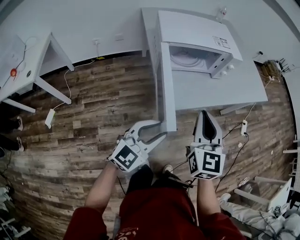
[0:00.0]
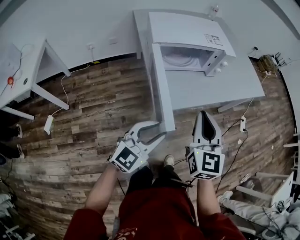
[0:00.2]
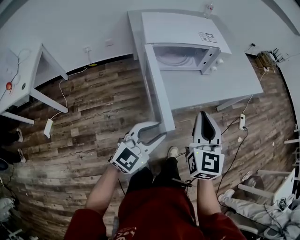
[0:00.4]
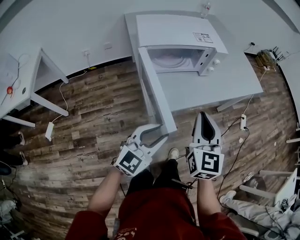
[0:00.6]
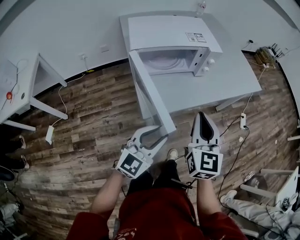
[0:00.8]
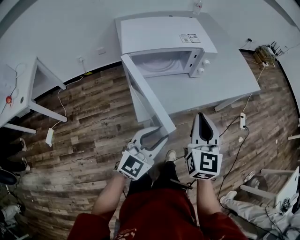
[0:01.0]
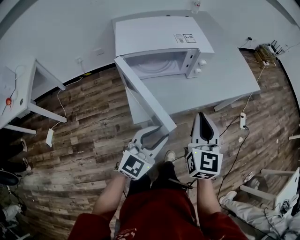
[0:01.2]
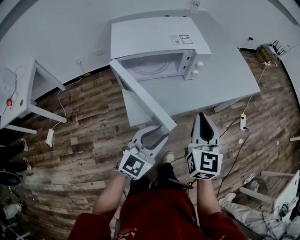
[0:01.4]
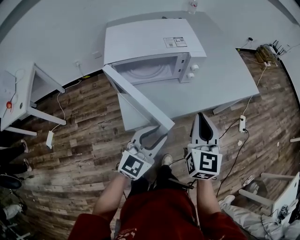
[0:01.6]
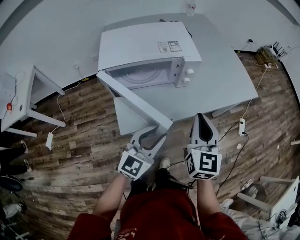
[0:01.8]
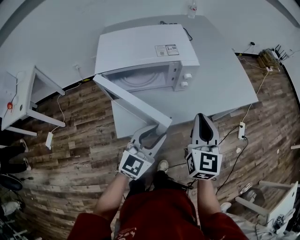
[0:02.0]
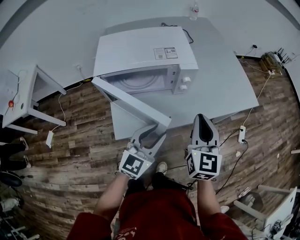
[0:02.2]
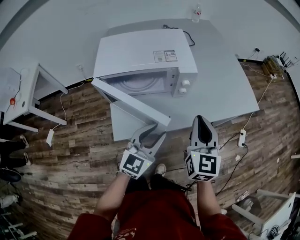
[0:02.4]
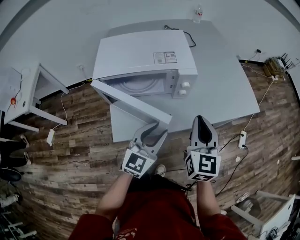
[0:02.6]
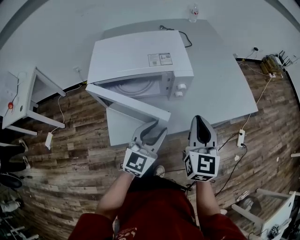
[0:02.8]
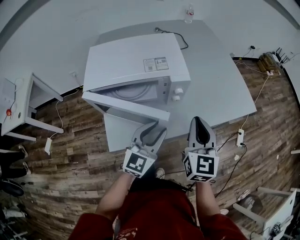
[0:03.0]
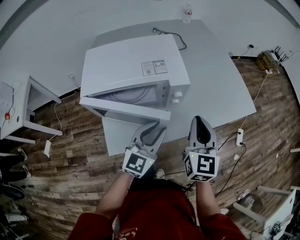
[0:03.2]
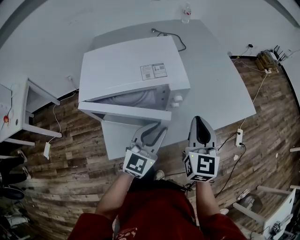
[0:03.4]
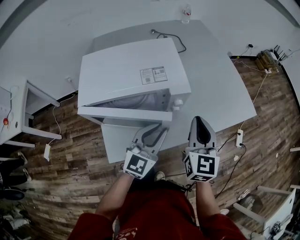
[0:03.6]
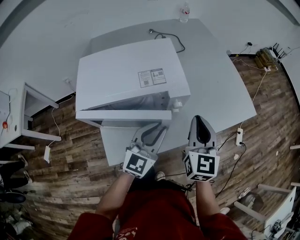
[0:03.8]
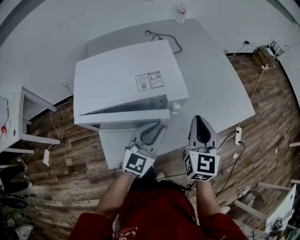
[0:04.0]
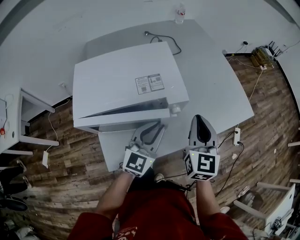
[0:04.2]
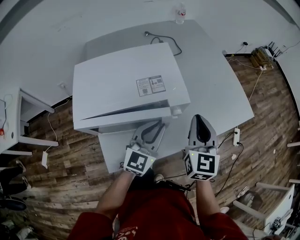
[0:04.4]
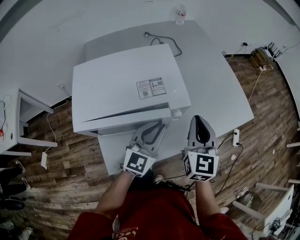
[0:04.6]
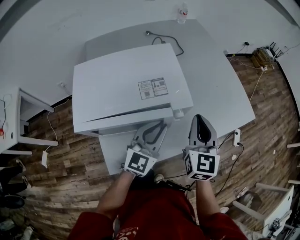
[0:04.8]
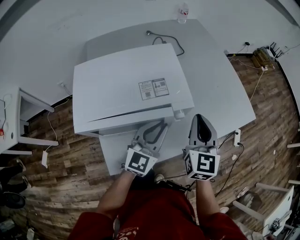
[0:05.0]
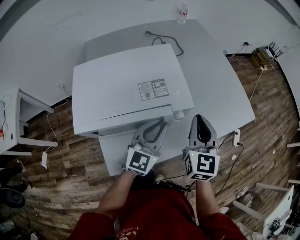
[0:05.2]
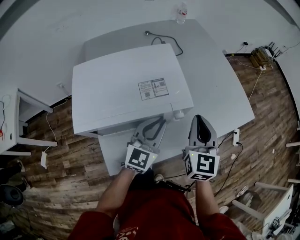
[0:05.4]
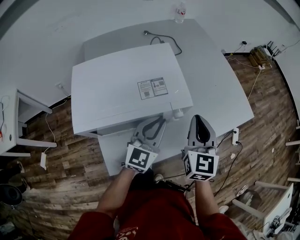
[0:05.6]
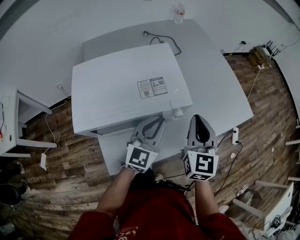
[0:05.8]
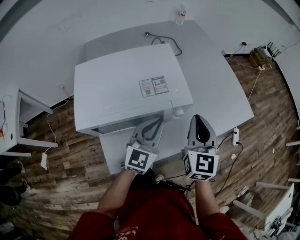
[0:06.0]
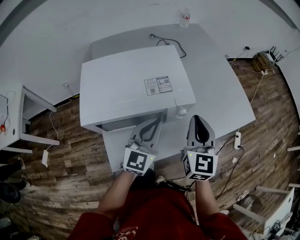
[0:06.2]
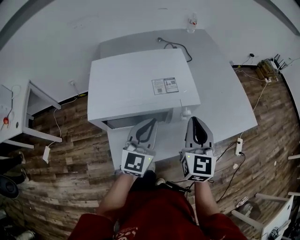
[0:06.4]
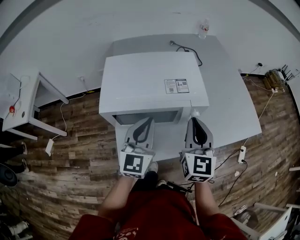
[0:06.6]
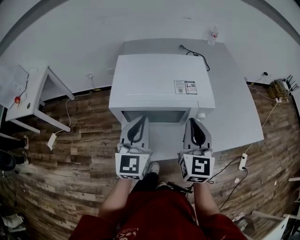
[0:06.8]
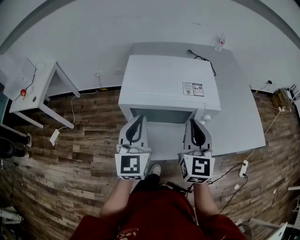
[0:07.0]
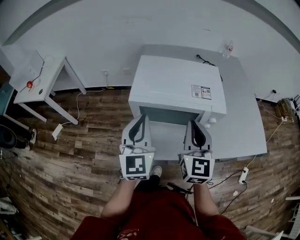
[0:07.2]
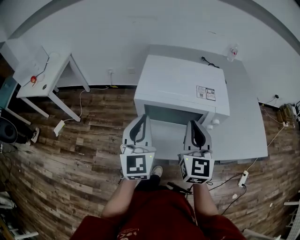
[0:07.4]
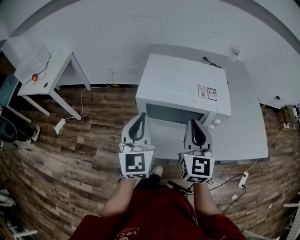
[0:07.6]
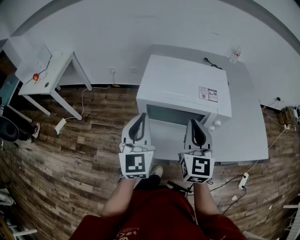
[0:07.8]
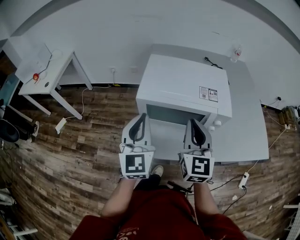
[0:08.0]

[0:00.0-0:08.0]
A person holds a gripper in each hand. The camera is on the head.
0:00.0 to 0:01.6: The right gripper moves to the right and forward, about 20 cm, while the left gripper travels forward and to the right by roughly 20 cm.
0:01.6 to 0:03.2: Both grippers travel together forward, about 15 cm.
0:03.2 to 0:04.8: The grippers both shift forward by about 10 cm.
0:04.8 to 0:06.4: The right gripper changes place by about 5 cm. The left gripper is displaced to the left by roughly 5 cm.
0:06.4 to 0:08.0: The right gripper changes place by approximately 15 cm, and rotates roughly 20 degrees. Meanwhile the left gripper moves about 20 cm, and turns by roughly 40 degrees.

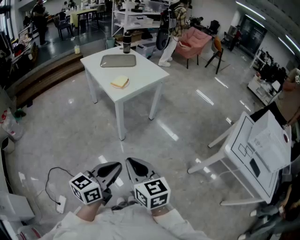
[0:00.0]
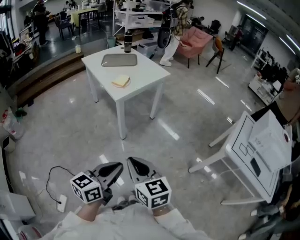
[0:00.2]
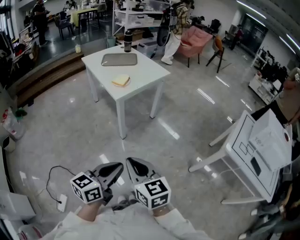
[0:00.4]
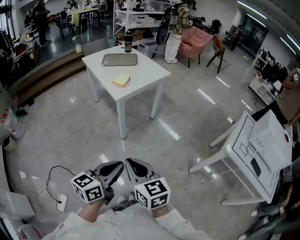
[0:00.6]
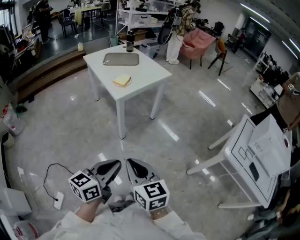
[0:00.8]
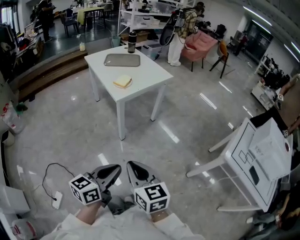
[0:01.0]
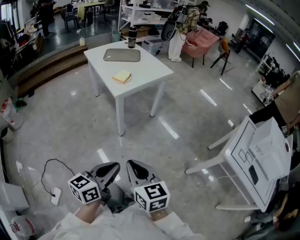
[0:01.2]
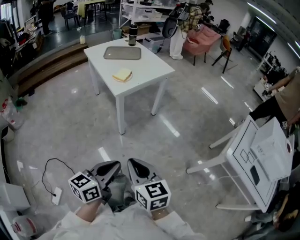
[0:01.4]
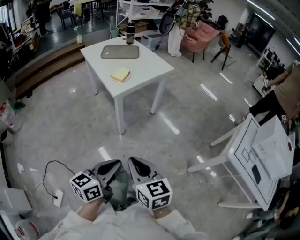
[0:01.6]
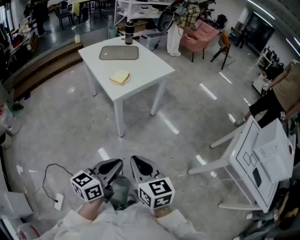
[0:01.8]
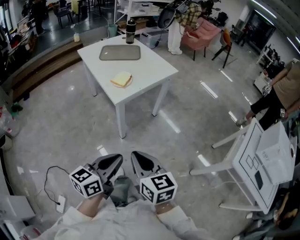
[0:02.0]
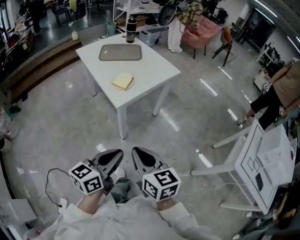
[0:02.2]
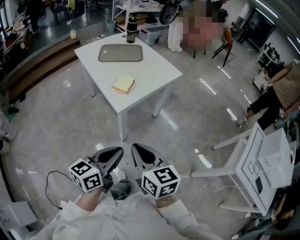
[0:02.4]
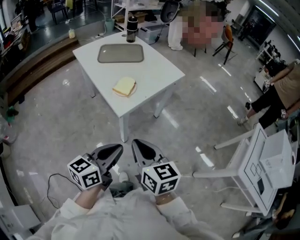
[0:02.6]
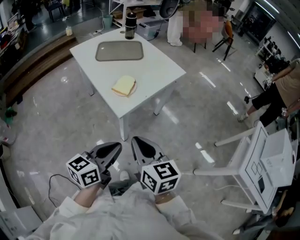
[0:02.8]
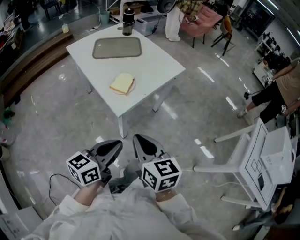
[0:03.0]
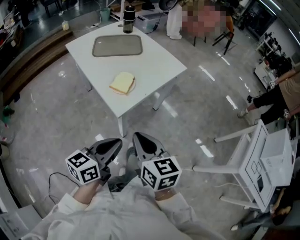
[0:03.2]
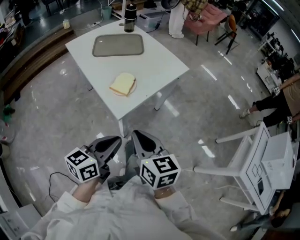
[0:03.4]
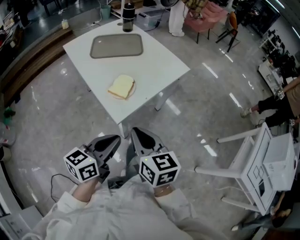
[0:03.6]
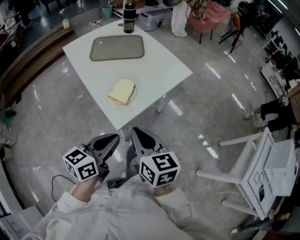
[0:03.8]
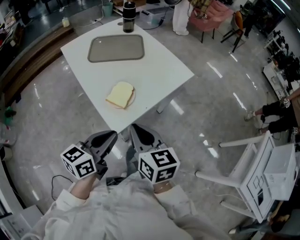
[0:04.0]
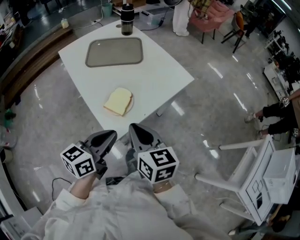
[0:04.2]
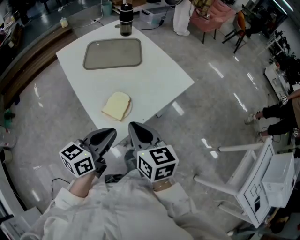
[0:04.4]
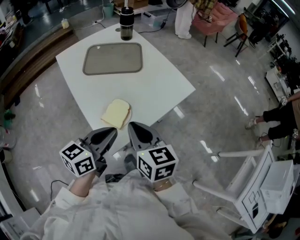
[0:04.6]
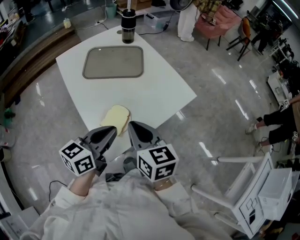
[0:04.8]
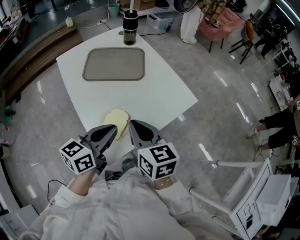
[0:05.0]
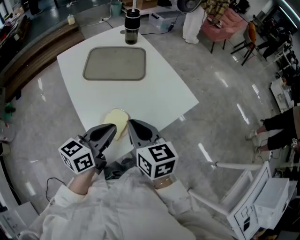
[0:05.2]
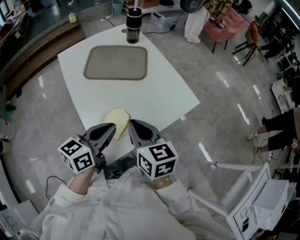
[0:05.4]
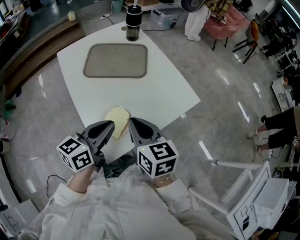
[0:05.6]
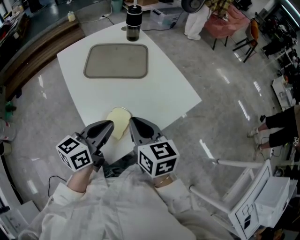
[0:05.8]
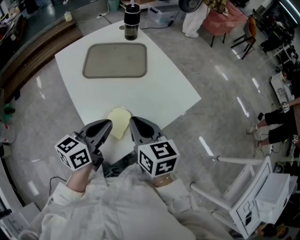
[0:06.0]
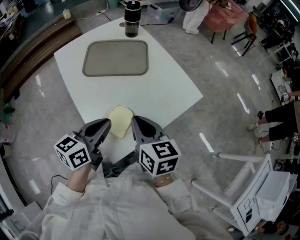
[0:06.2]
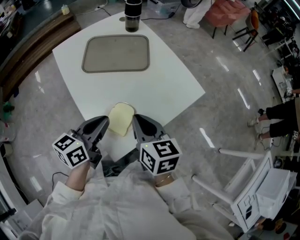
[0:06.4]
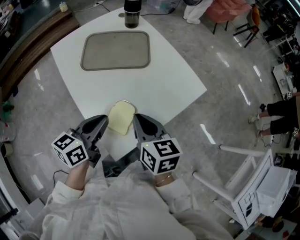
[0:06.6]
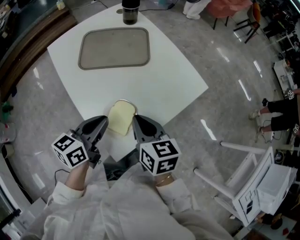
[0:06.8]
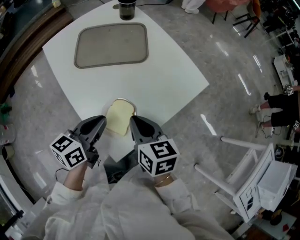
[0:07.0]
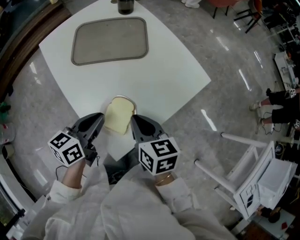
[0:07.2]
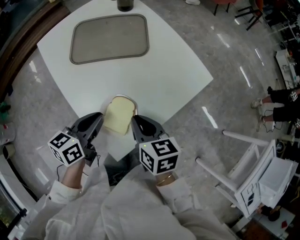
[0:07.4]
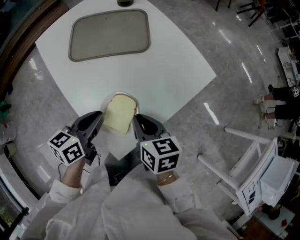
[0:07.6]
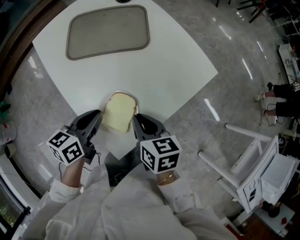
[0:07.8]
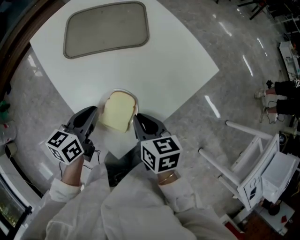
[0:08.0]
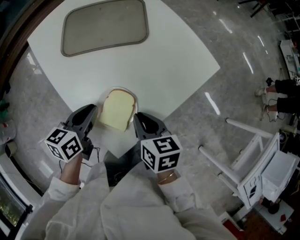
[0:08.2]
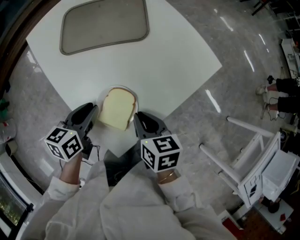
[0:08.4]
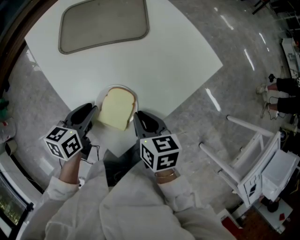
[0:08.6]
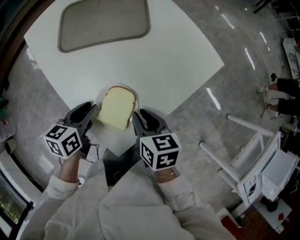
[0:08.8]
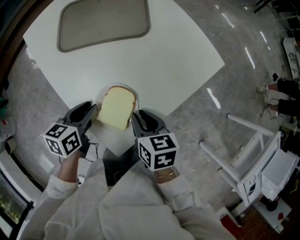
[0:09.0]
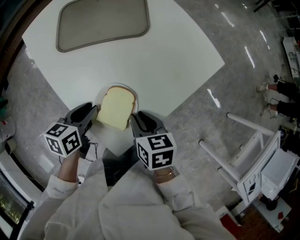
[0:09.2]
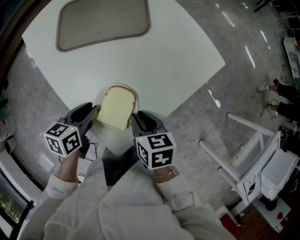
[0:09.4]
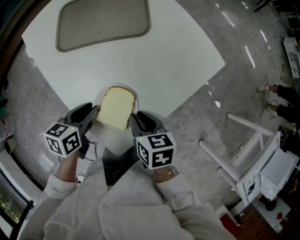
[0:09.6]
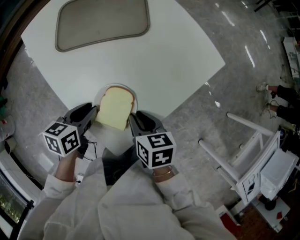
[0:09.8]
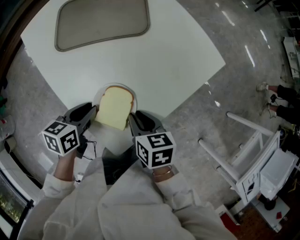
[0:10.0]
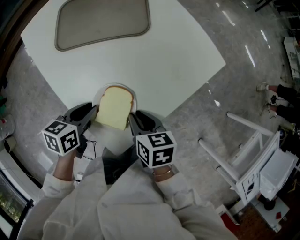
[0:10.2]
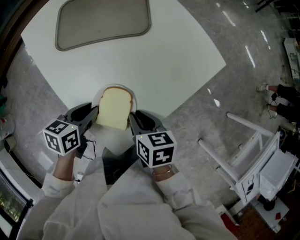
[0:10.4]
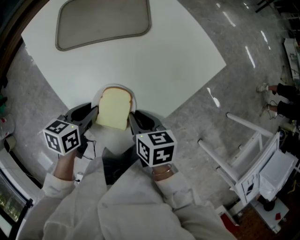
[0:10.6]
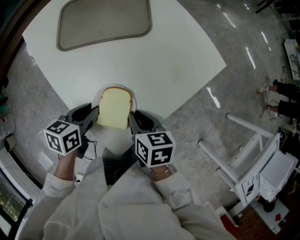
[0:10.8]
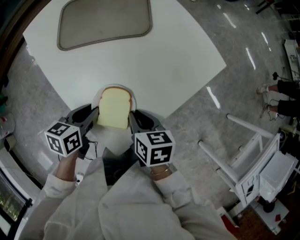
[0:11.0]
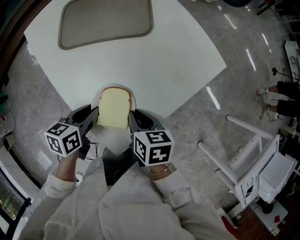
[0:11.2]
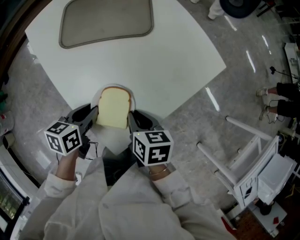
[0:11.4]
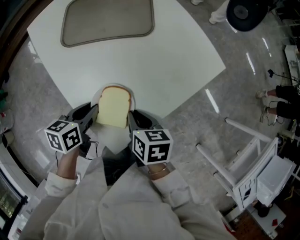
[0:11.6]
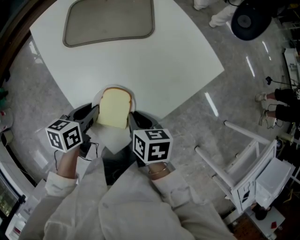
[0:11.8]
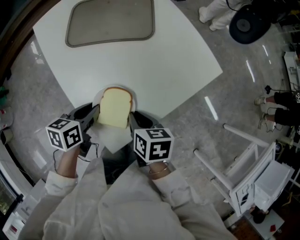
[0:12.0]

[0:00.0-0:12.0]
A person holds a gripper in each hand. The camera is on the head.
0:00.0 to 0:01.6: The left gripper moves some 5 cm; the right gripper shifts by approximately 5 cm.
0:01.6 to 0:03.0: Both grippers move forward and to the left, some 30 cm.
0:03.0 to 0:04.4: The grippers both shift forward by roughly 25 cm.
0:04.4 to 0:06.0: The grippers both shift forward by some 10 cm.
0:06.0 to 0:07.6: The grippers both shift downward by about 10 cm.
0:07.6 to 0:09.0: The two grippers go about 5 cm downward.
0:09.0 to 0:12.0: The grippers stay close to where they were, moving slightly.

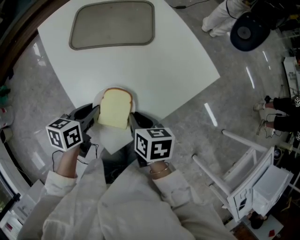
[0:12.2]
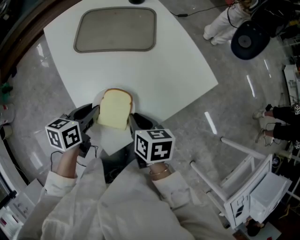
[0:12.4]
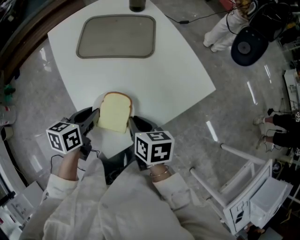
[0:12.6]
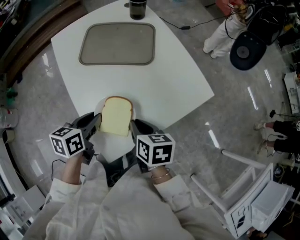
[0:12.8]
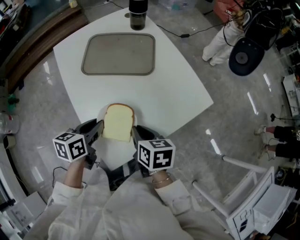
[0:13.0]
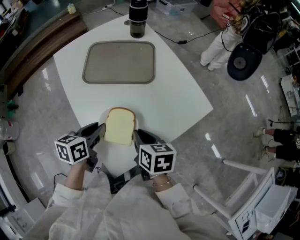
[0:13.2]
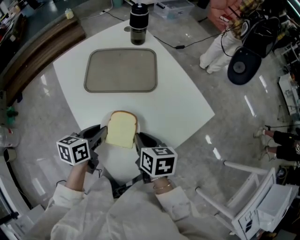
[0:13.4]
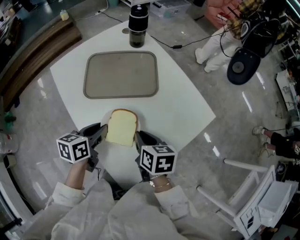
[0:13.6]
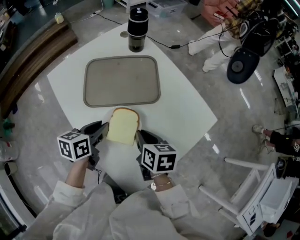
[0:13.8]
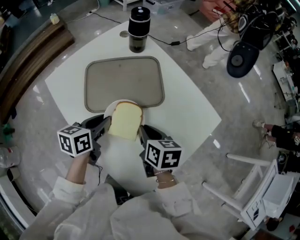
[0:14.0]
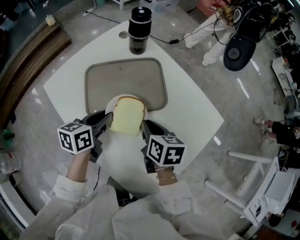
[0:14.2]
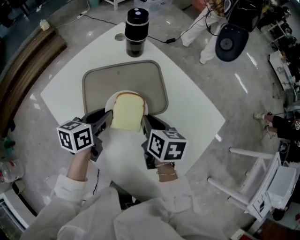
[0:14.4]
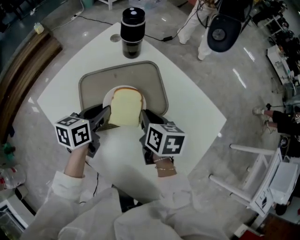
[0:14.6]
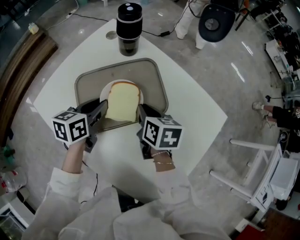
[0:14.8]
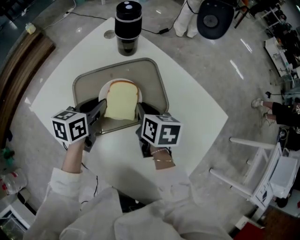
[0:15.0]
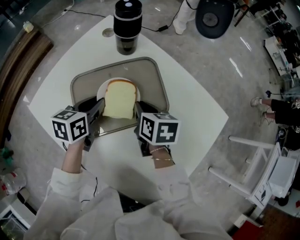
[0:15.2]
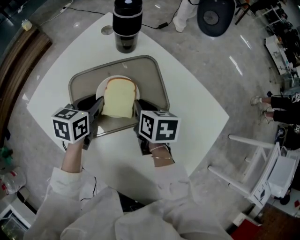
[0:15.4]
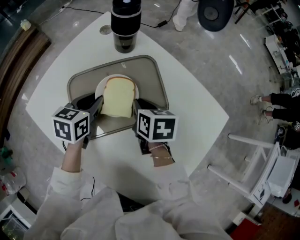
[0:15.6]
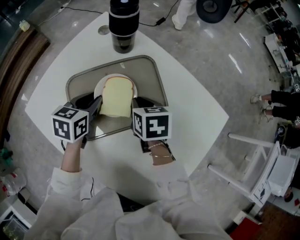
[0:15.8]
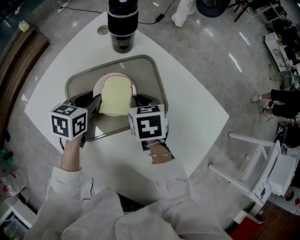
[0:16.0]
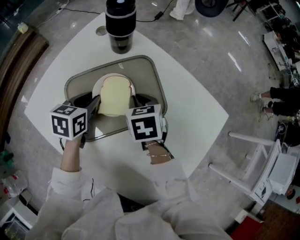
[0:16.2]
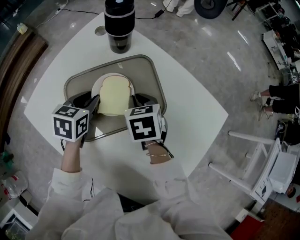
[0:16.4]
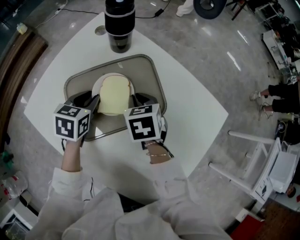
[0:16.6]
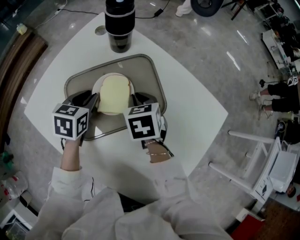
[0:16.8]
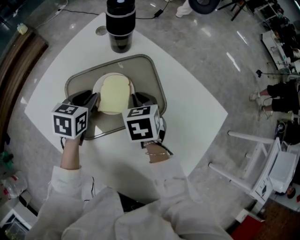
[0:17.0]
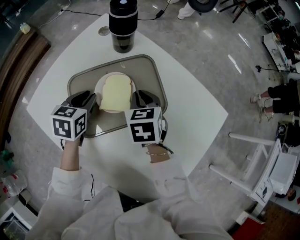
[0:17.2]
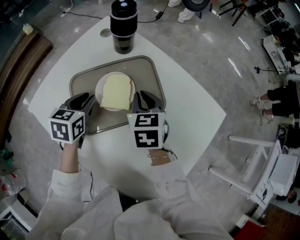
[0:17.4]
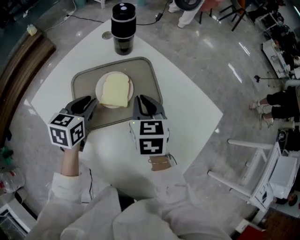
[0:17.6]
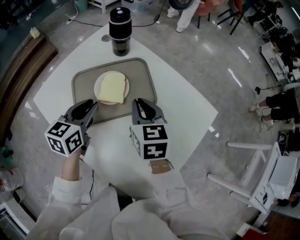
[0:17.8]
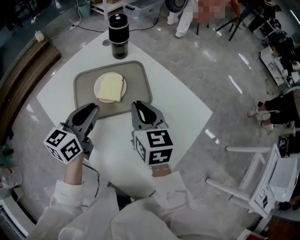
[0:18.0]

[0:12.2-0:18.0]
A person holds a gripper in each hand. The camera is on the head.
0:12.2 to 0:13.6: The two grippers go roughly 10 cm forward.
0:13.6 to 0:15.0: Both grippers move forward, about 25 cm.
0:15.0 to 0:16.6: The left gripper shifts by roughly 5 cm, and turns by approximately 20 degrees; the right gripper changes its angle by roughly 30 degrees.
0:16.6 to 0:18.0: The two grippers go roughly 20 cm upward, backward and to the right. The left gripper angles its fingers upward, by roughly 30 degrees, while the right gripper tilts its fingers about 30 degrees upward.
